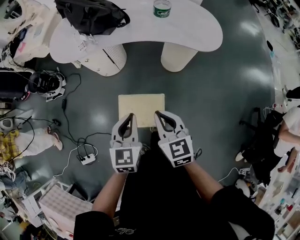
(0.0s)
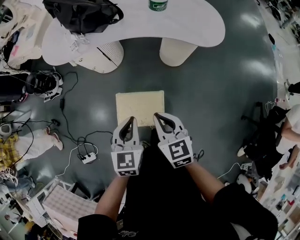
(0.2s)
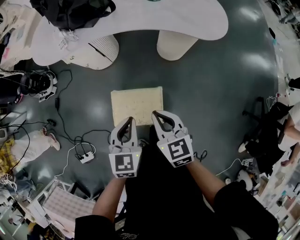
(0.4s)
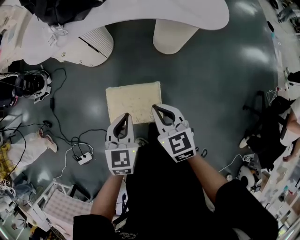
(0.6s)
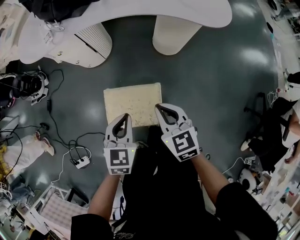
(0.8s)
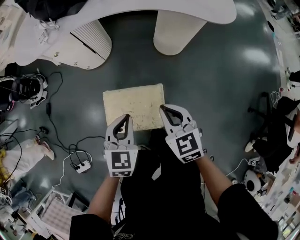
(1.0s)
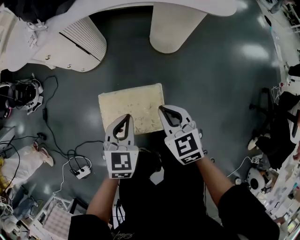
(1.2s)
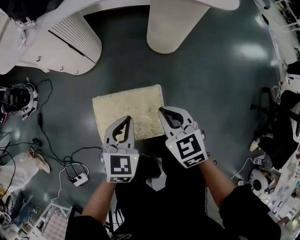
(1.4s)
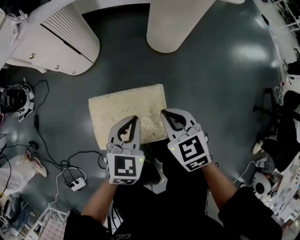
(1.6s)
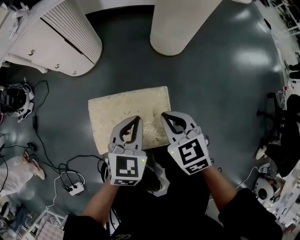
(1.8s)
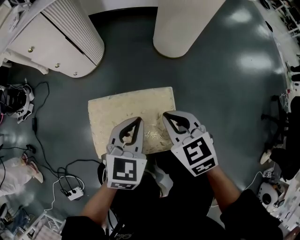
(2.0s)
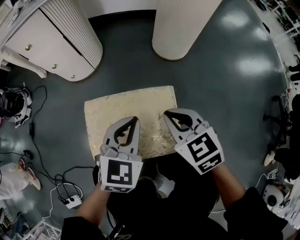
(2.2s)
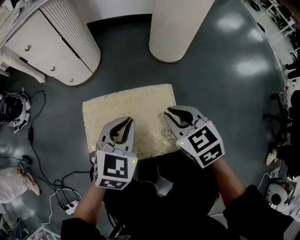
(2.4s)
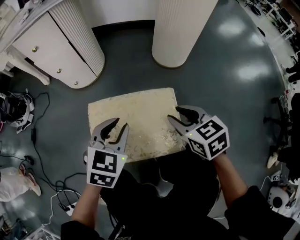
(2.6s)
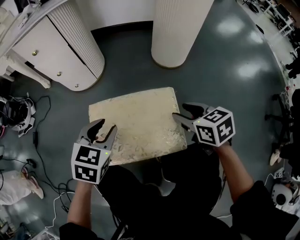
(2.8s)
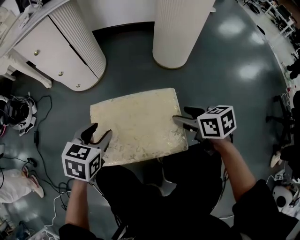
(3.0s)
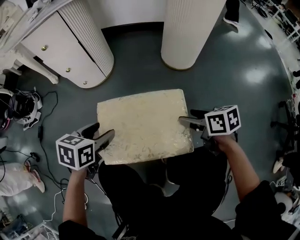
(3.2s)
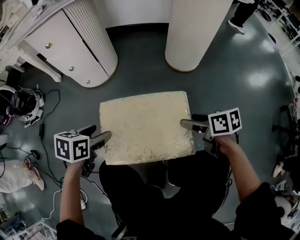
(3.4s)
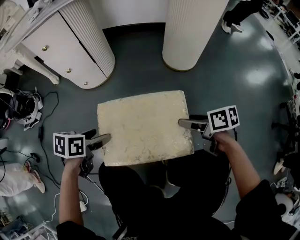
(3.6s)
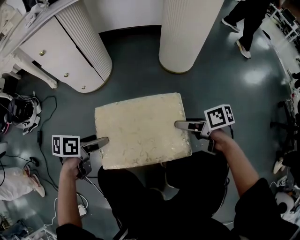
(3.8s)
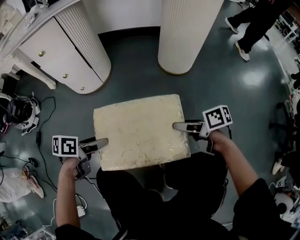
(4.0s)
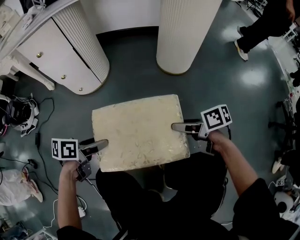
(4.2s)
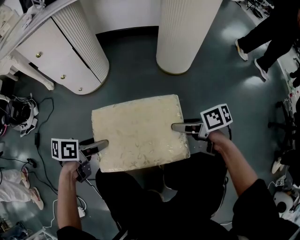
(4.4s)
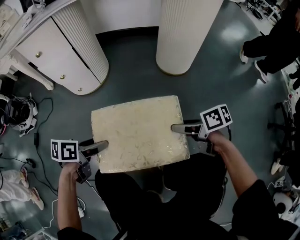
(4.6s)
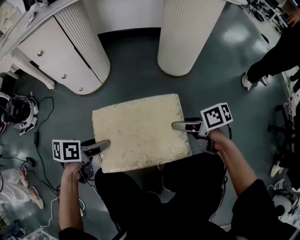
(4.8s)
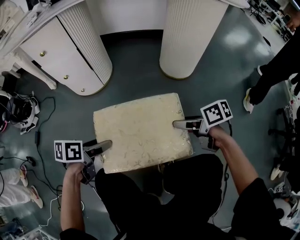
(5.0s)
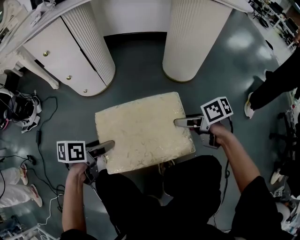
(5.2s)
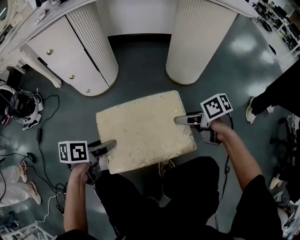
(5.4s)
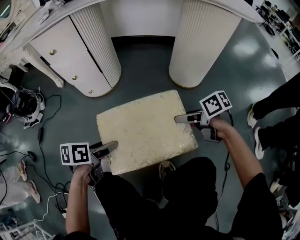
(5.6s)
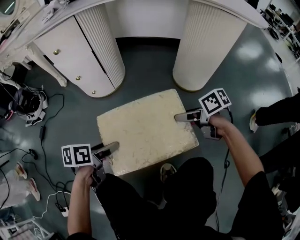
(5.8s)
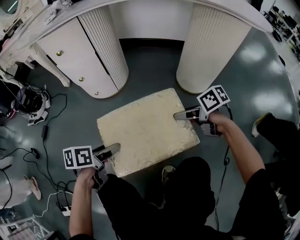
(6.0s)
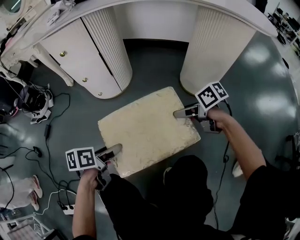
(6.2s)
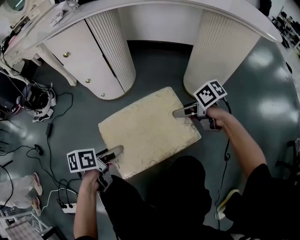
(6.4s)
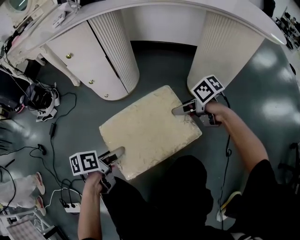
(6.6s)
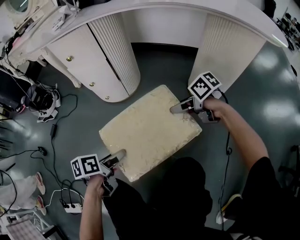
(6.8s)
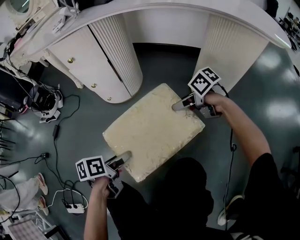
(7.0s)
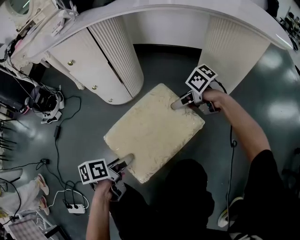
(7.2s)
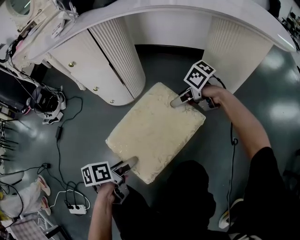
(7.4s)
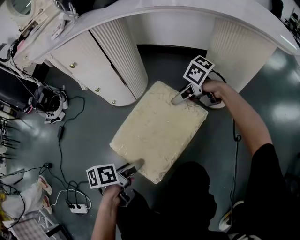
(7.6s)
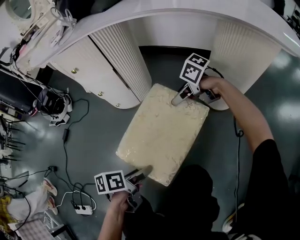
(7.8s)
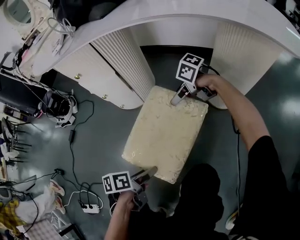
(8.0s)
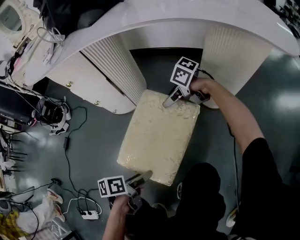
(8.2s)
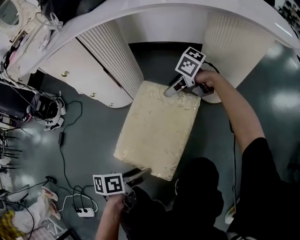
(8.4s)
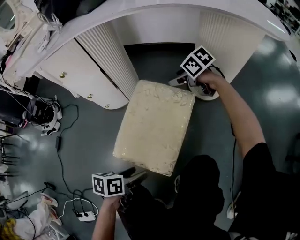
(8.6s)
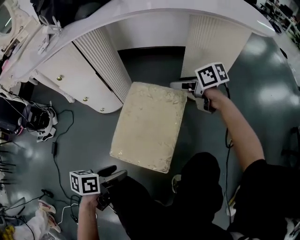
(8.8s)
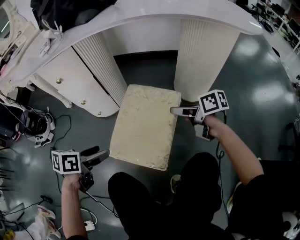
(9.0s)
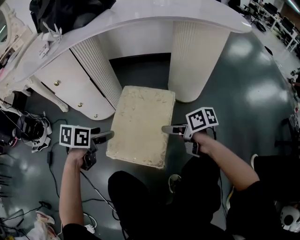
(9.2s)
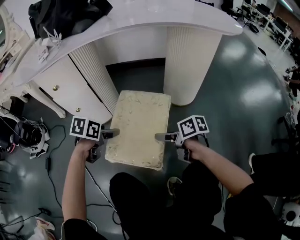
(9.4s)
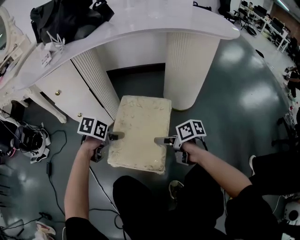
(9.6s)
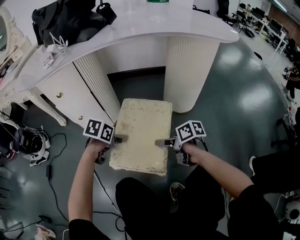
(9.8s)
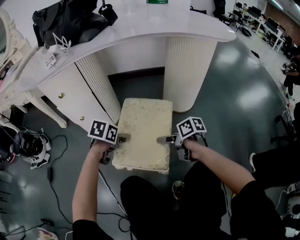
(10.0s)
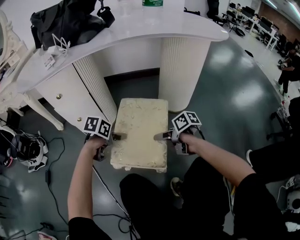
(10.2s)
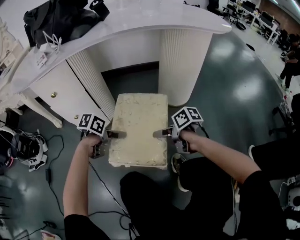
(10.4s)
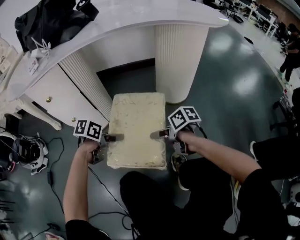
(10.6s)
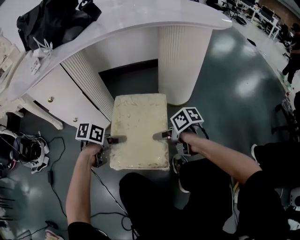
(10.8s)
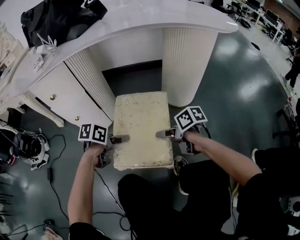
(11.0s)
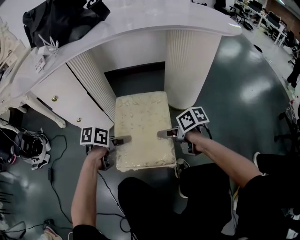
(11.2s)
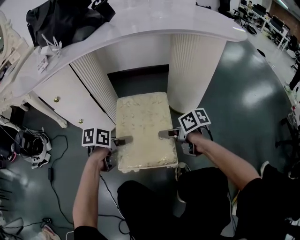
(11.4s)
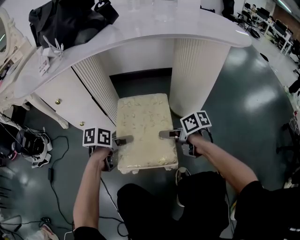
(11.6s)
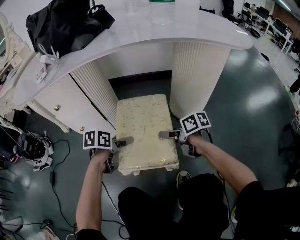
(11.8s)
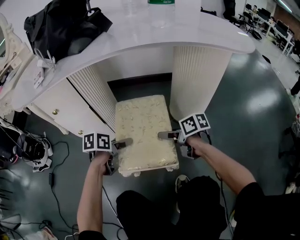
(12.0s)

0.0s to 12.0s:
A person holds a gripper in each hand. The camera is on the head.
0.0s to 1.6s: Both grippers move downward, about 35 cm. The left gripper turns by approximately 20 degrees.
1.6s to 3.0s: The left gripper shifts approximately 20 cm to the left and downward, and opens its fingers, while the right gripper moves downward, about 15 cm, turns by approximately 30 degrees, and opens its fingers.
3.0s to 4.4s: The left gripper moves downward, about 5 cm, and turns by about 40 degrees. Meanwhile the right gripper turns by approximately 30 degrees.
4.4s to 6.0s: The left gripper rotates approximately 20 degrees; the right gripper moves approximately 15 cm.
6.0s to 7.6s: The right gripper shifts by approximately 15 cm, and rotates approximately 30 degrees.
7.6s to 9.0s: The right gripper changes place by approximately 10 cm, and swivels approximately 50 degrees. The left gripper moves approximately 15 cm, and swivels roughly 40 degrees.
9.0s to 10.4s: The right gripper changes place by roughly 10 cm, while the left gripper ends up approximately 15 cm from where it was, and changes its angle by approximately 20 degrees.
10.4s to 12.0s: The right gripper changes place by some 15 cm, while the left gripper shifts by about 10 cm, and rotates about 20 degrees.

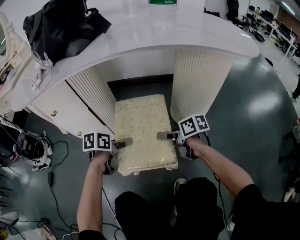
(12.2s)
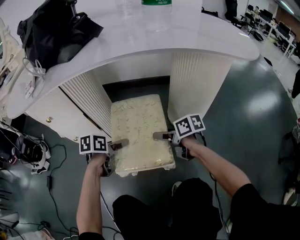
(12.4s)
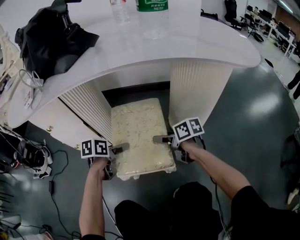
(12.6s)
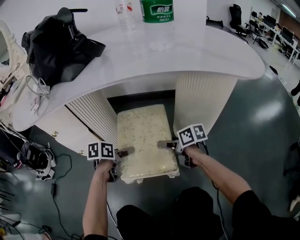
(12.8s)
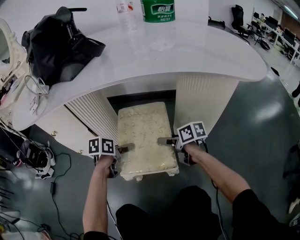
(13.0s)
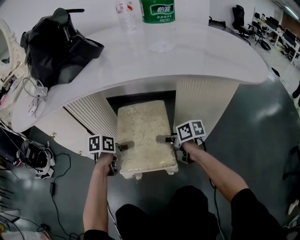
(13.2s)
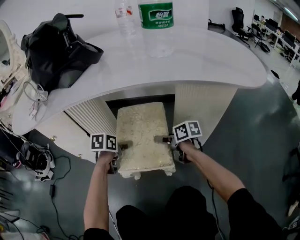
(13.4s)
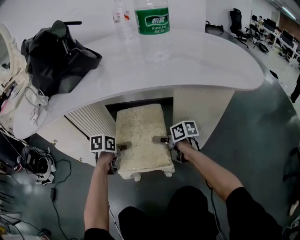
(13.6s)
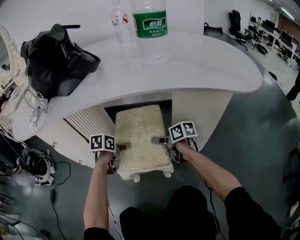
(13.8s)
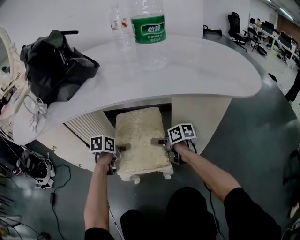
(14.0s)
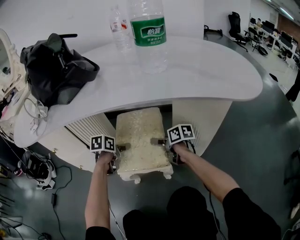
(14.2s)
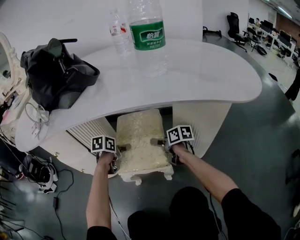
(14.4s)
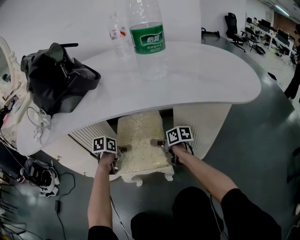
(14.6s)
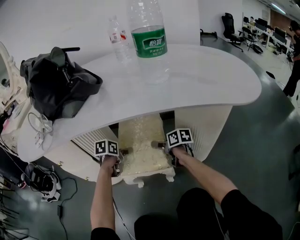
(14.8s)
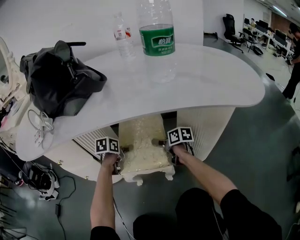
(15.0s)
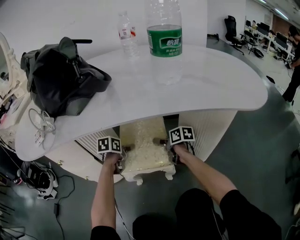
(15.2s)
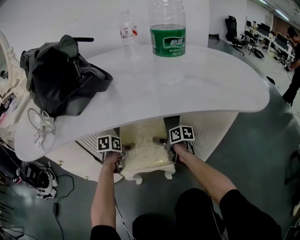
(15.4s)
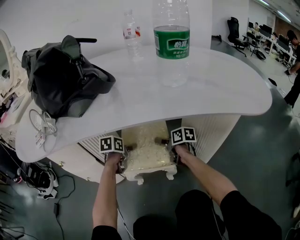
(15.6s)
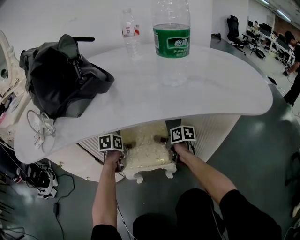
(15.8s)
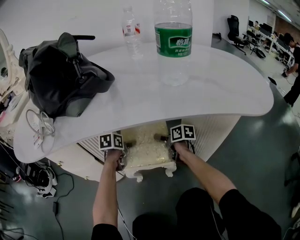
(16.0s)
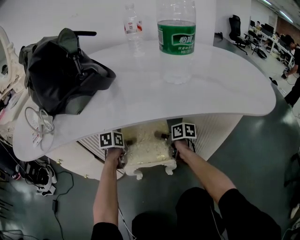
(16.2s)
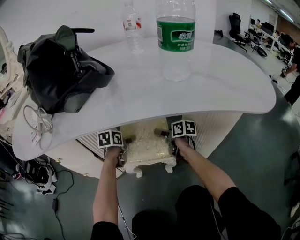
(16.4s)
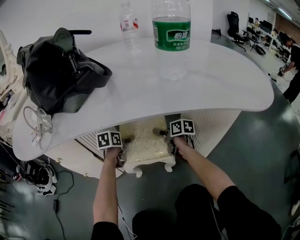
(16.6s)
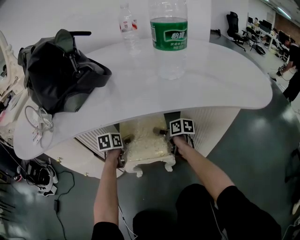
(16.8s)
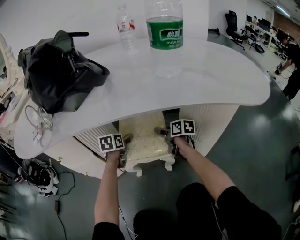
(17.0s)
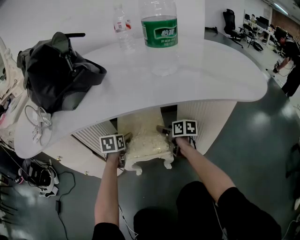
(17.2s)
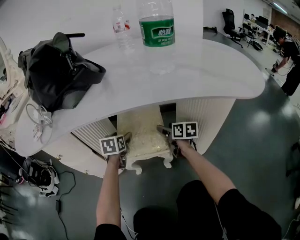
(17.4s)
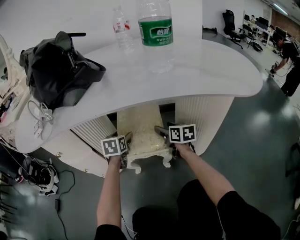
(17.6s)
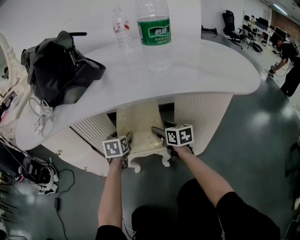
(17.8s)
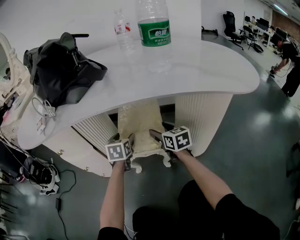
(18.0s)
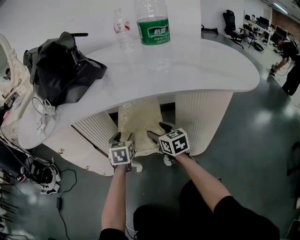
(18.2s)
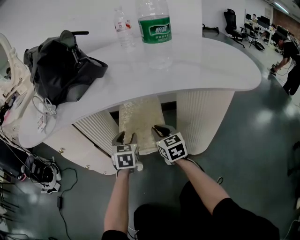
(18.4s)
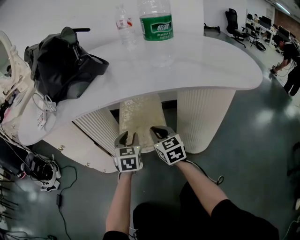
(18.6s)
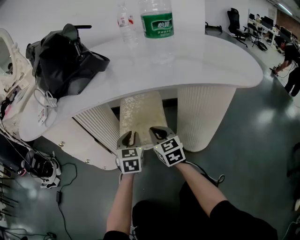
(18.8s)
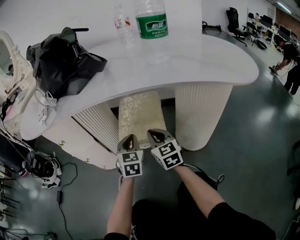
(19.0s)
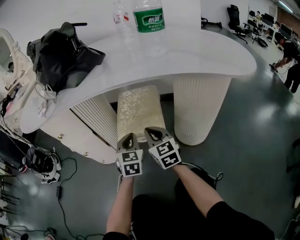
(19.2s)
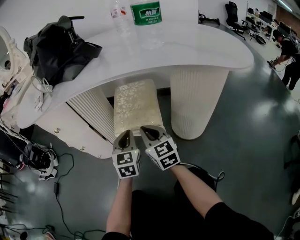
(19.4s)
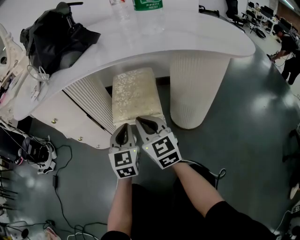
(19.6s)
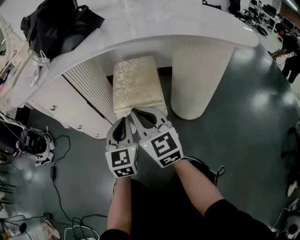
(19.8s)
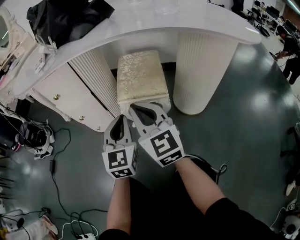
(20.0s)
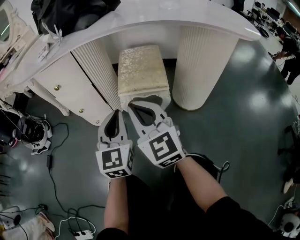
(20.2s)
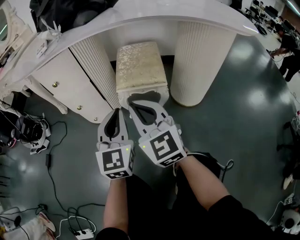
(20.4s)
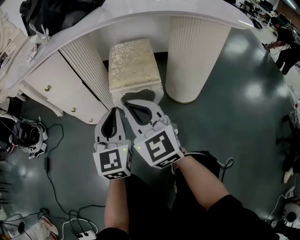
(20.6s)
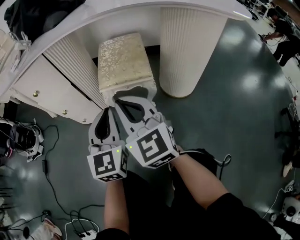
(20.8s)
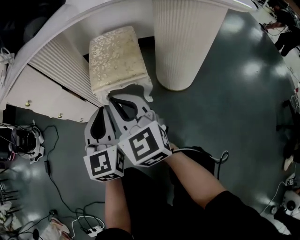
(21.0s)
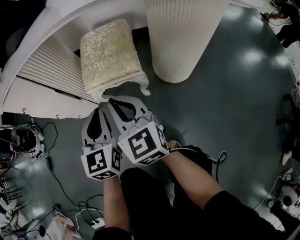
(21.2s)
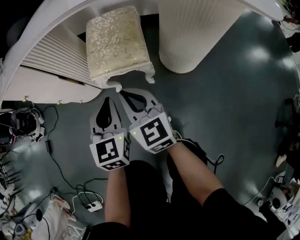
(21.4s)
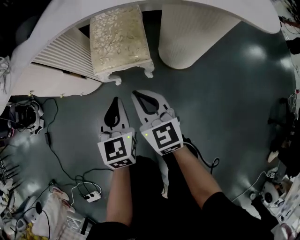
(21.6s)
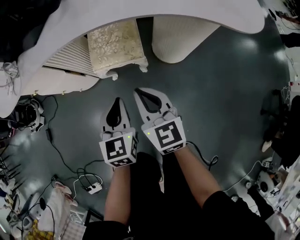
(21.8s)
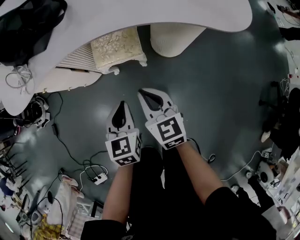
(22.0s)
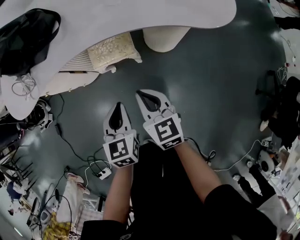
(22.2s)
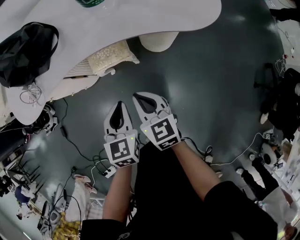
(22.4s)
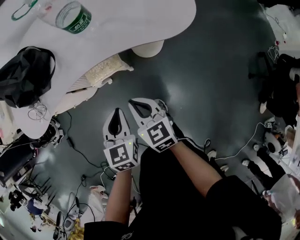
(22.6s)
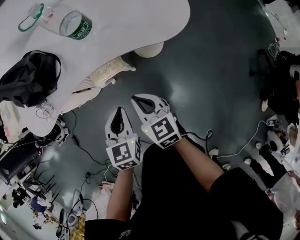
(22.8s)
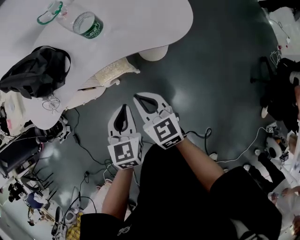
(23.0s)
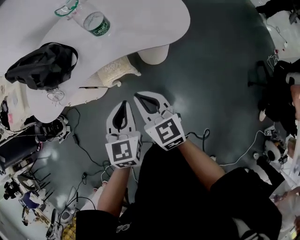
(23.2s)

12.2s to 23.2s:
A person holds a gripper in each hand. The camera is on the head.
12.2s to 13.8s: The two grippers go approximately 15 cm forward.
13.8s to 15.4s: Both grippers move forward, about 10 cm.
15.4s to 17.0s: The grippers move only a little.
17.0s to 18.4s: The left gripper is displaced backward and upward by roughly 10 cm, and swivels roughly 30 degrees. Meanwhile the right gripper travels backward, upward and to the left by roughly 15 cm, turns by about 40 degrees, and closes up.
18.4s to 20.0s: The right gripper shifts approximately 25 cm backward, to the left and upward. The left gripper is displaced backward by some 20 cm, and closes its fingers.
20.0s to 21.6s: The two grippers go roughly 5 cm to the right.
21.6s to 23.2s: Both grippers move upward, about 35 cm.

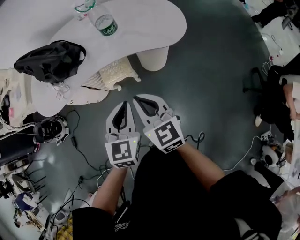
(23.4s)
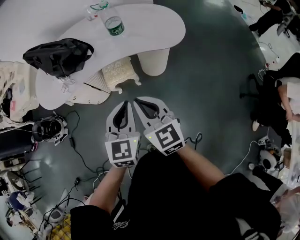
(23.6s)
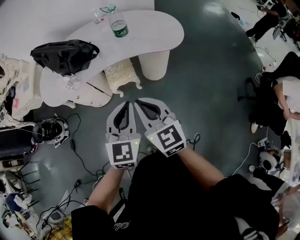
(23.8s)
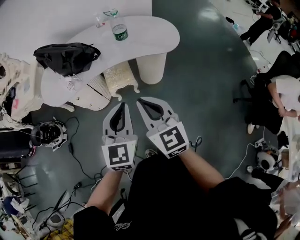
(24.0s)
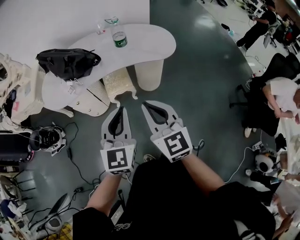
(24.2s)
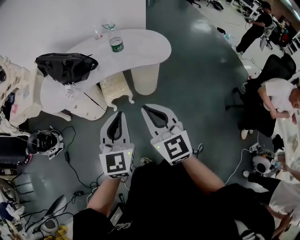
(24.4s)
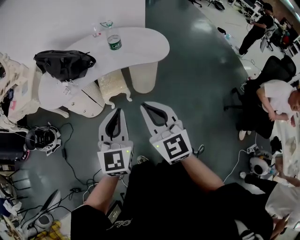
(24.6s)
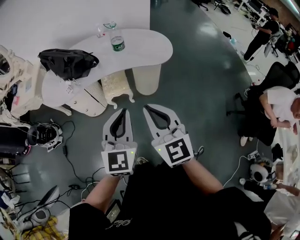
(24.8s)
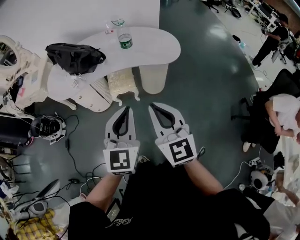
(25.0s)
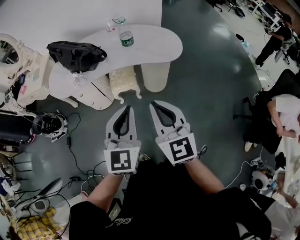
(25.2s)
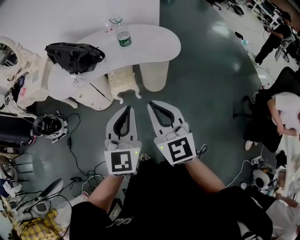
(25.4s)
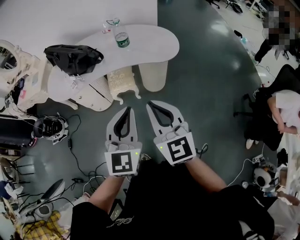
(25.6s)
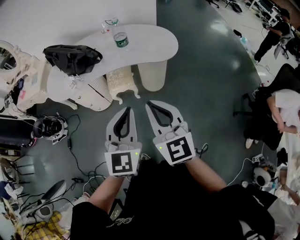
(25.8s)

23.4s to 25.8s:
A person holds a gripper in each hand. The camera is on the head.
23.4s to 24.6s: The grippers both shift backward and upward by some 25 cm. The right gripper turns by about 20 degrees.
24.6s to 25.8s: The left gripper moves to the right, approximately 5 cm.
